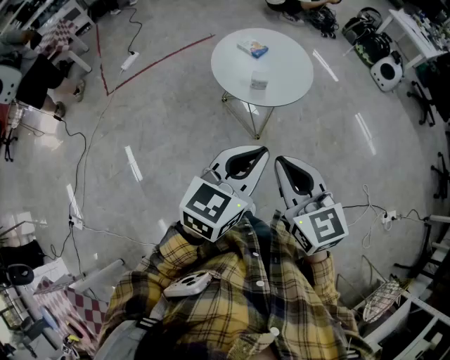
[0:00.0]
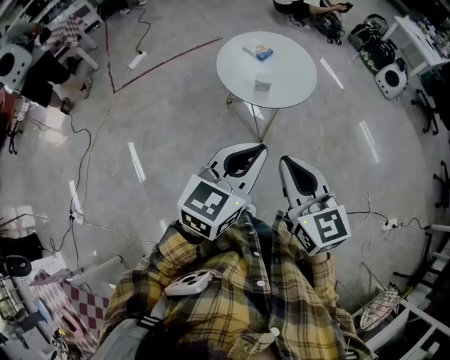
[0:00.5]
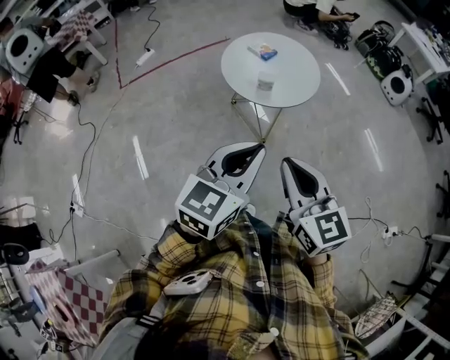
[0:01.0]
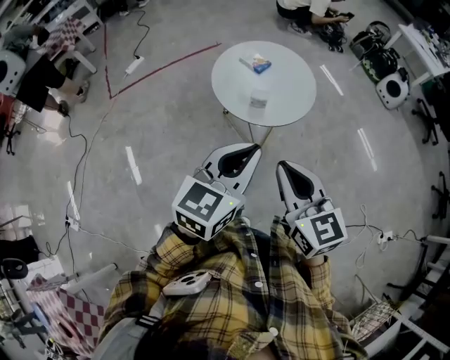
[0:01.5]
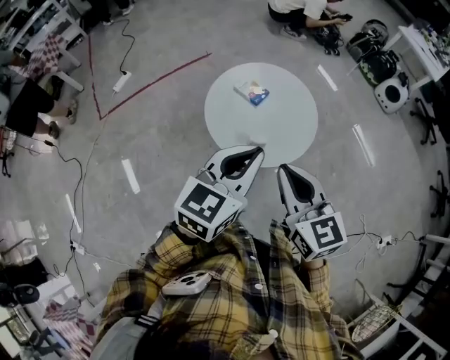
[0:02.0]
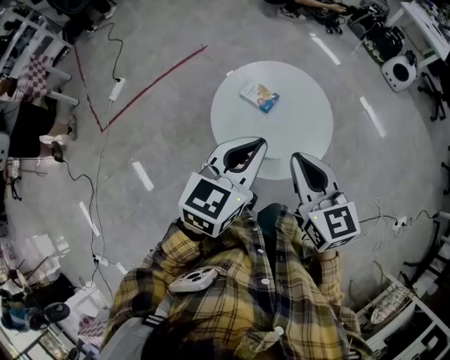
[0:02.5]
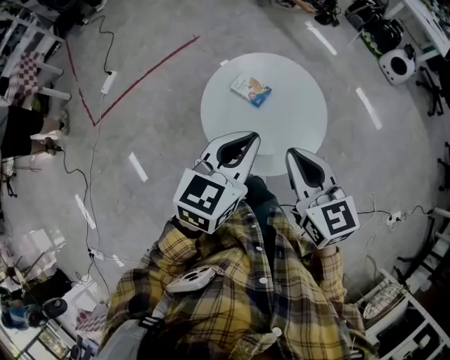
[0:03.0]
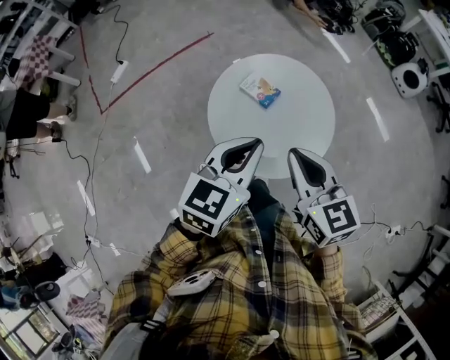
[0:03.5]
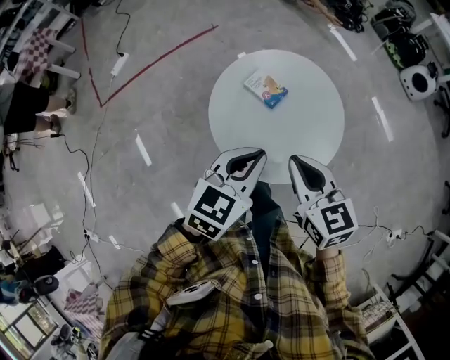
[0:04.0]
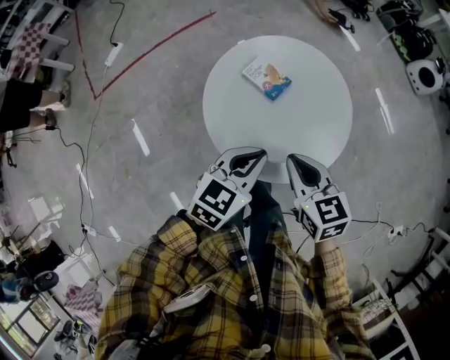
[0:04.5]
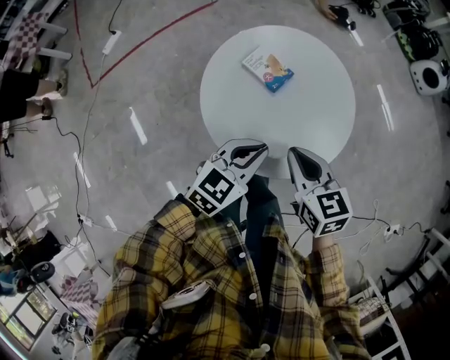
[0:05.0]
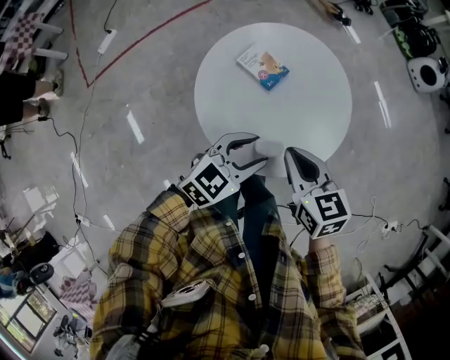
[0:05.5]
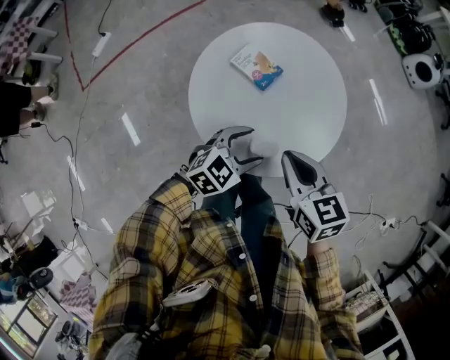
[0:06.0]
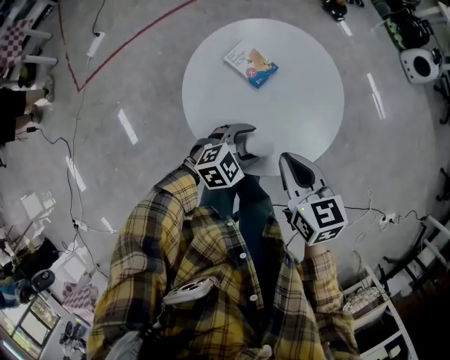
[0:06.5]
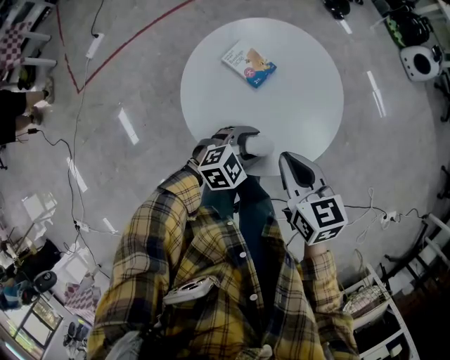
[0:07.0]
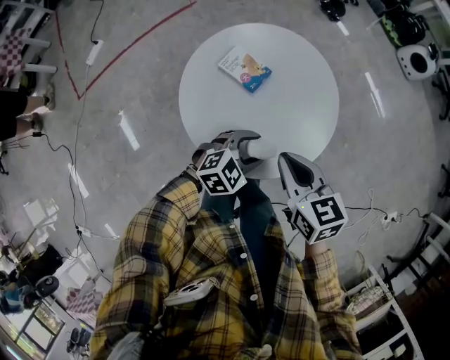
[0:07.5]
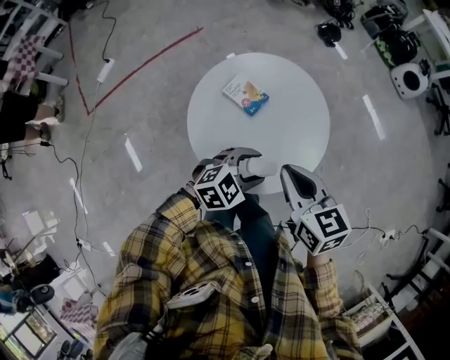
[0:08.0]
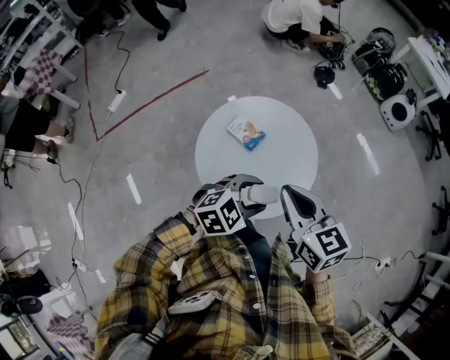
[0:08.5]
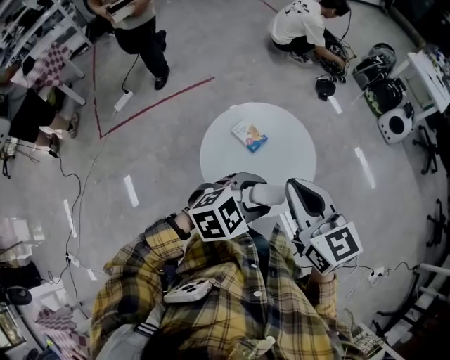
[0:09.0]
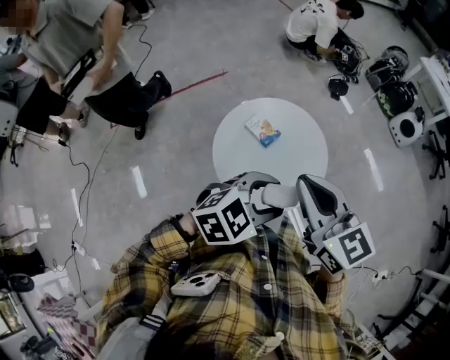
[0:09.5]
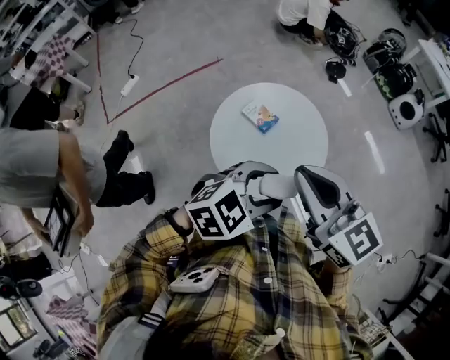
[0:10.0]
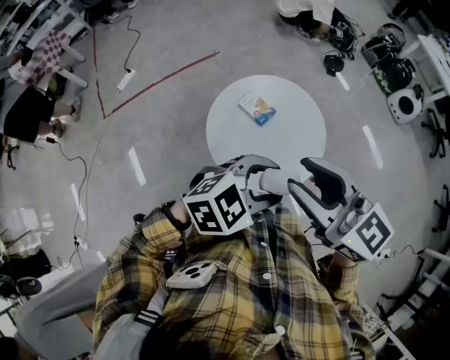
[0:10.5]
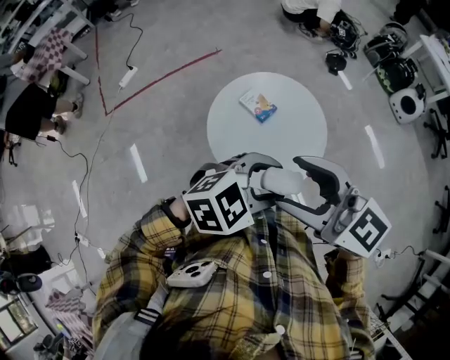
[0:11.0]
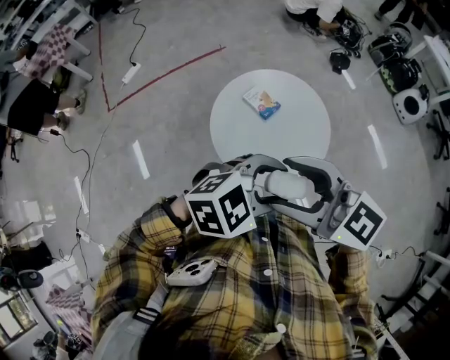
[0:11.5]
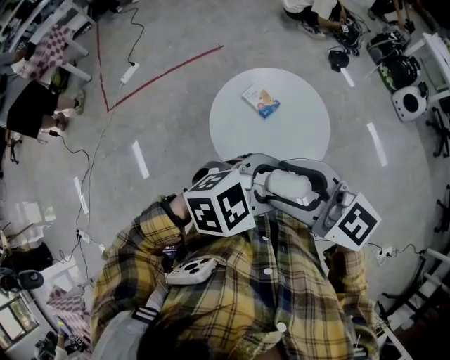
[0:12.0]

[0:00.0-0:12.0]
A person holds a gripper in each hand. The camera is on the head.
0:00.0 to 0:02.0: Both grippers move forward, about 25 cm.
0:02.0 to 0:04.0: The left gripper goes some 15 cm downward and forward, while the right gripper travels forward and downward by about 15 cm.
0:04.0 to 0:06.0: The left gripper goes about 20 cm downward, turns by roughly 30 degrees, and opens its fingers. The right gripper moves downward, some 10 cm.
0:06.0 to 0:08.0: The left gripper ends up about 5 cm from where it was. The right gripper heads upward, covering roughly 5 cm.
0:08.0 to 0:10.0: Both grippers move upward, about 20 cm. The right gripper swivels roughly 30 degrees.
0:10.0 to 0:12.0: The right gripper shifts by about 5 cm, turns by approximately 30 degrees, and opens.

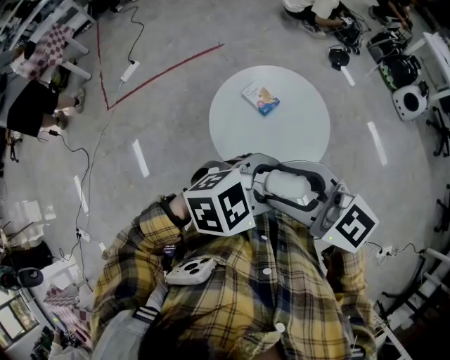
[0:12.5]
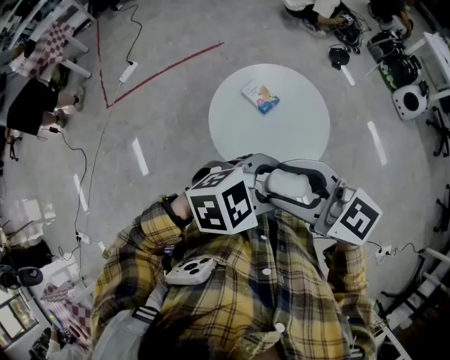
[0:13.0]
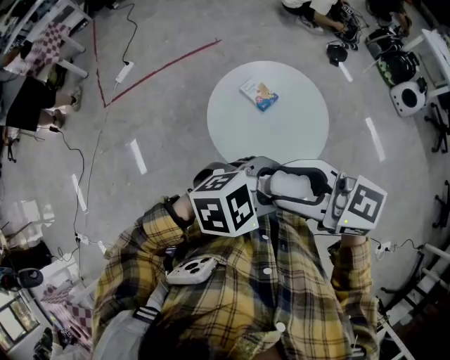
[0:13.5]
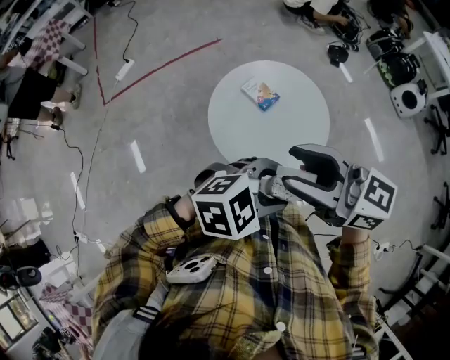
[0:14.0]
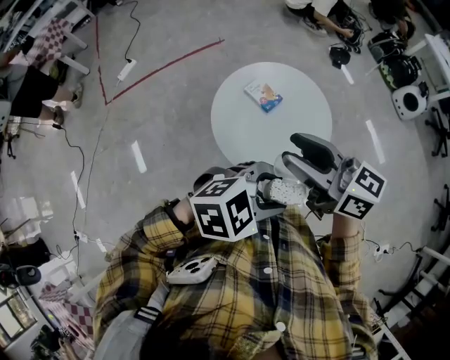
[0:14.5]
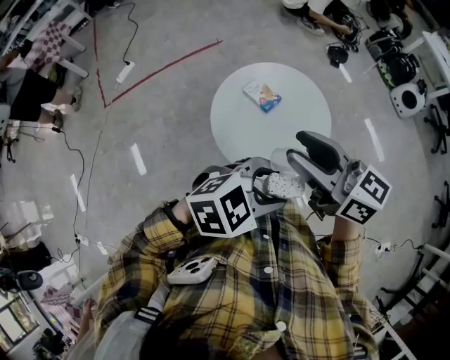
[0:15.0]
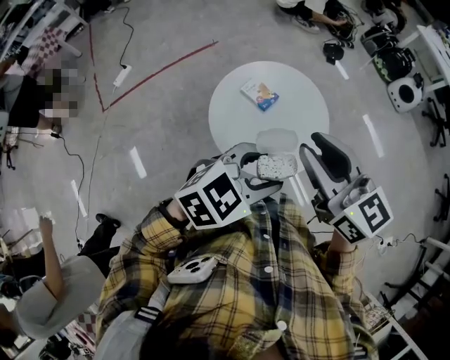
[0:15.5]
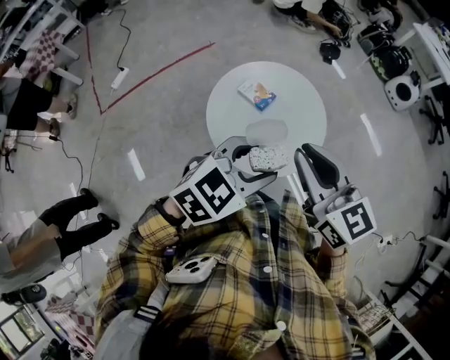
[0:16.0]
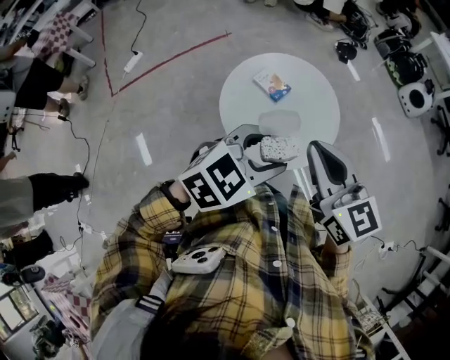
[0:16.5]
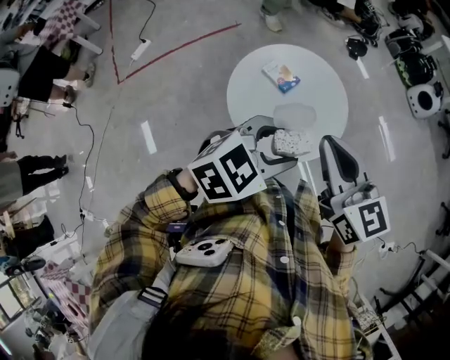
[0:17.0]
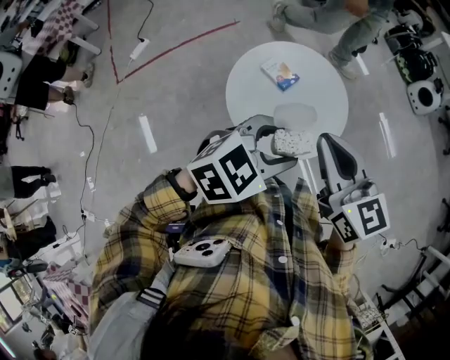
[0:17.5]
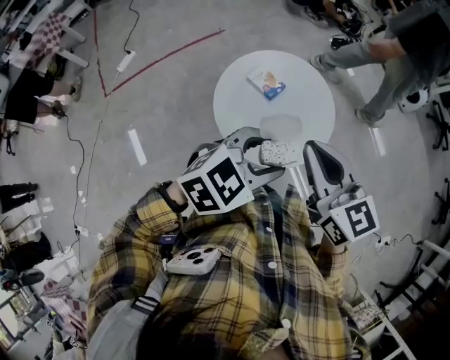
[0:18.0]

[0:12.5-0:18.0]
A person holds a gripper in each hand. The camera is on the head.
0:12.5 to 0:14.5: The right gripper changes place by some 5 cm, and rotates some 30 degrees.
0:14.5 to 0:16.0: The left gripper ends up approximately 10 cm from where it was, while the right gripper changes its angle by approximately 30 degrees, and closes.
0:16.0 to 0:18.0: The grippers move only a little.

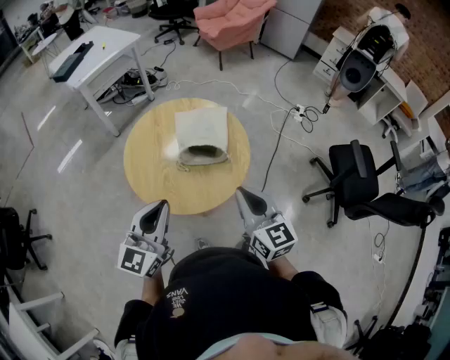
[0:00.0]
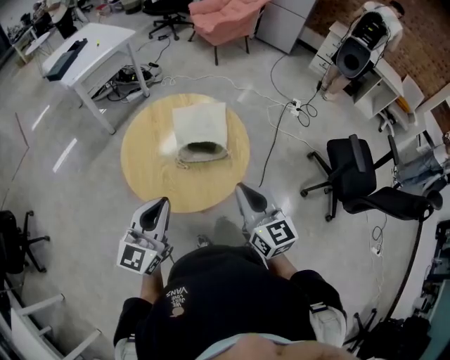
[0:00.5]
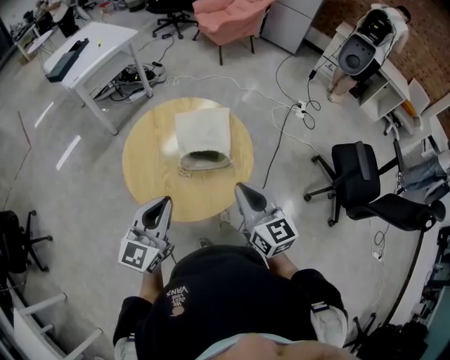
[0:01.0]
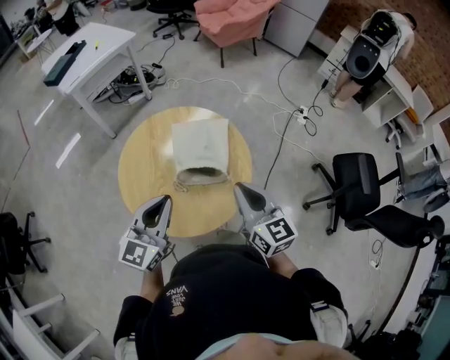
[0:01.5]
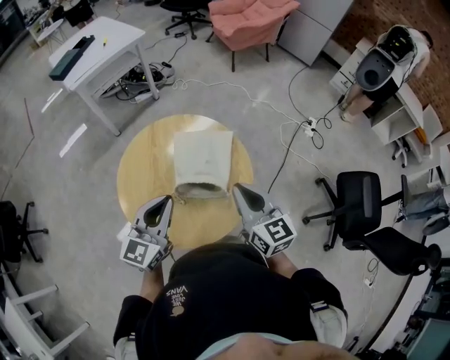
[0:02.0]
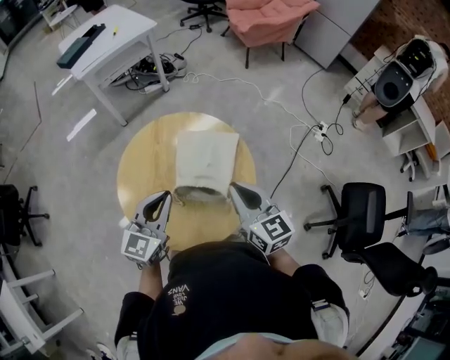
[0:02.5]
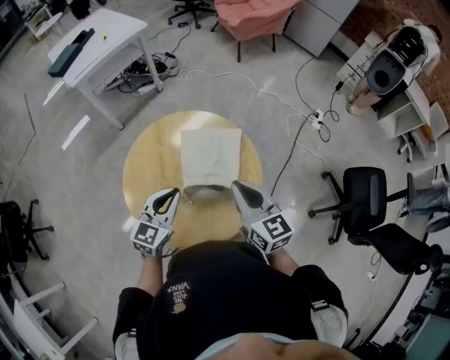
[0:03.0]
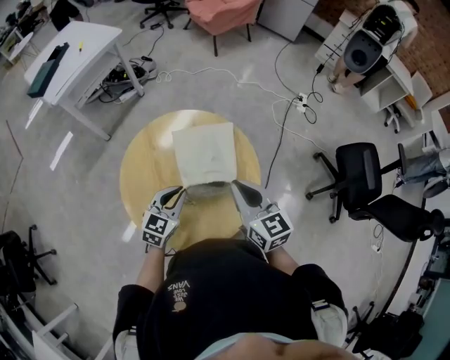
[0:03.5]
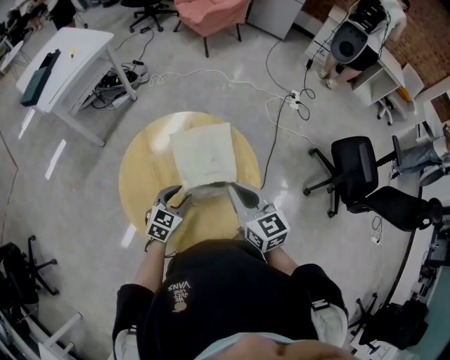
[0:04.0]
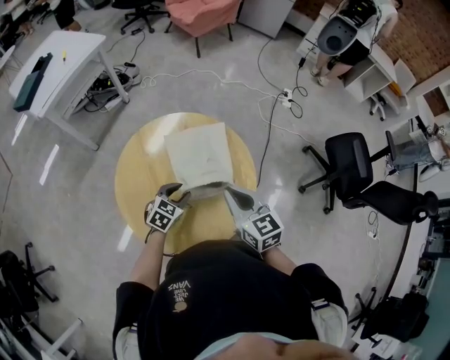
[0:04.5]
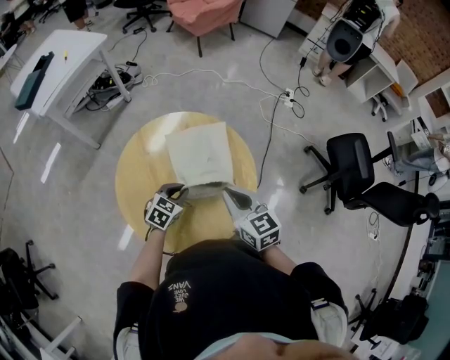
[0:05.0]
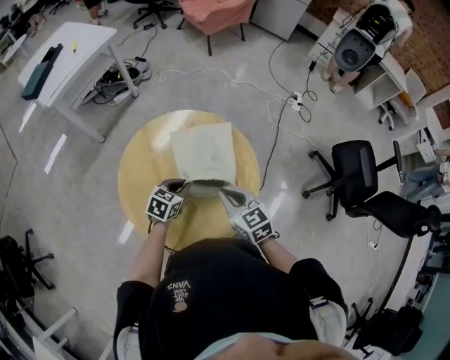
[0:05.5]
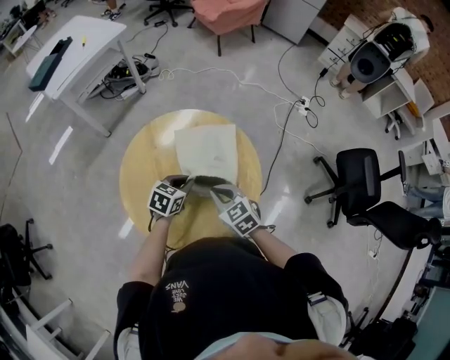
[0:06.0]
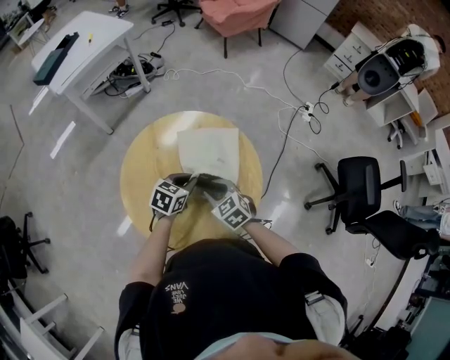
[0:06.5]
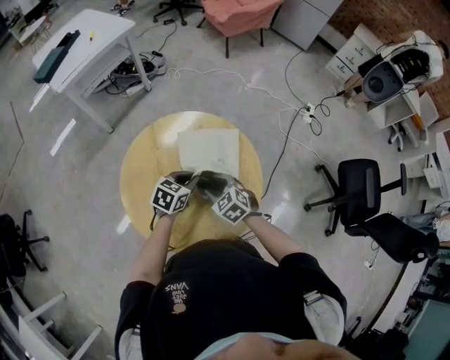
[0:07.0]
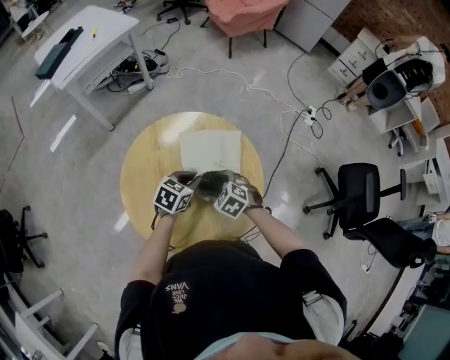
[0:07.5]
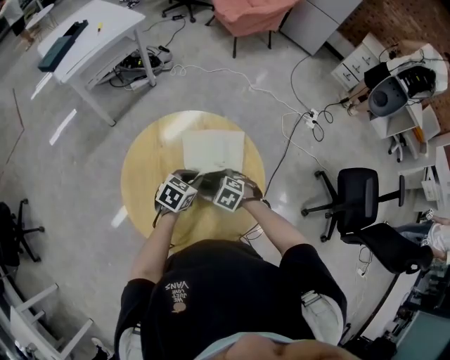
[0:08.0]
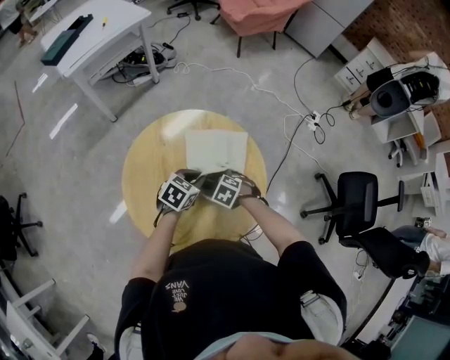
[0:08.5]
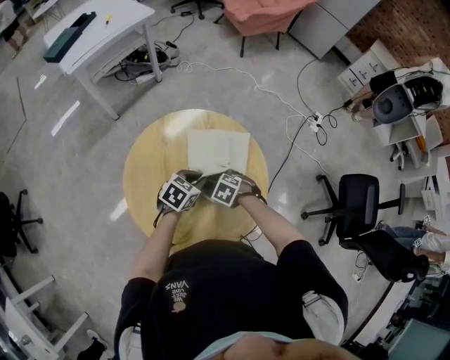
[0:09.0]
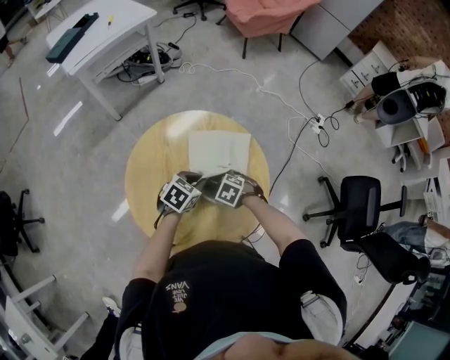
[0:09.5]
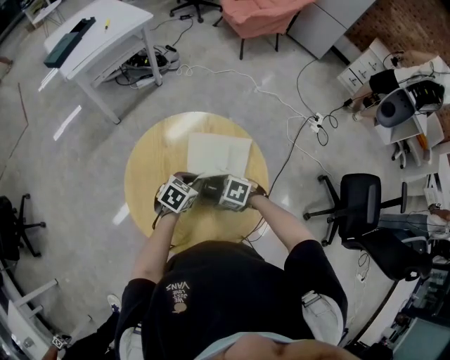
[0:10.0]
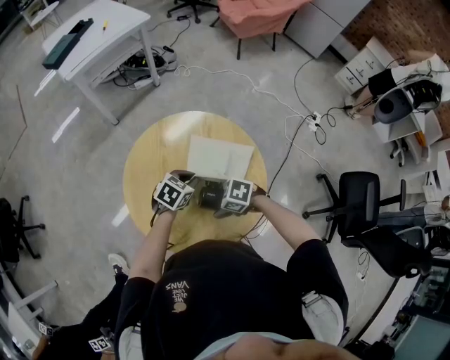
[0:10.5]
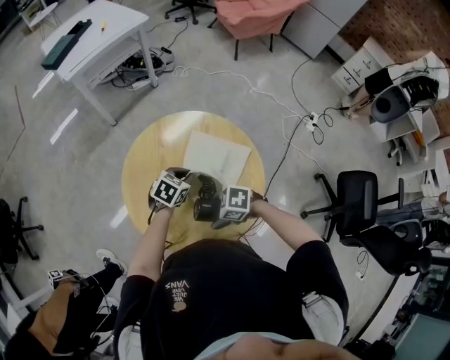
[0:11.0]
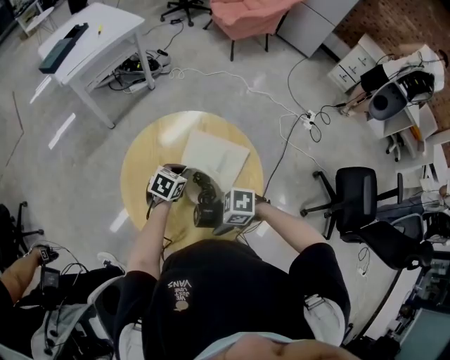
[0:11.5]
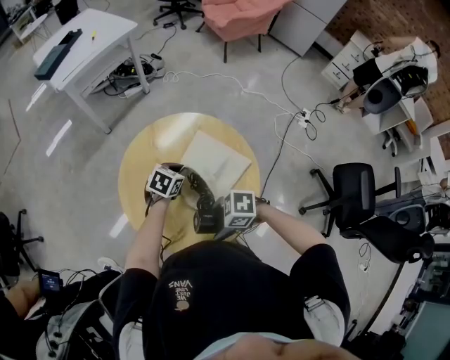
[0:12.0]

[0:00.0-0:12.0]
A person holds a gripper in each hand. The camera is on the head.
0:00.0 to 0:02.0: Both grippers move forward, approximately 20 cm.
0:02.0 to 0:04.0: The right gripper heads to the left, covering some 5 cm, while the left gripper shifts approximately 20 cm downward, turns by about 40 degrees, and opens.
0:04.0 to 0:06.0: The left gripper moves about 5 cm, and closes its fingers, while the right gripper travels downward by some 15 cm, and changes its angle by about 30 degrees.
0:06.0 to 0:08.0: The right gripper is displaced downward by approximately 10 cm, tips its fingers downward by approximately 30 degrees, and opens its fingers.
0:08.0 to 0:10.0: The right gripper rotates approximately 20 degrees.
0:10.0 to 0:12.0: The right gripper changes place by roughly 20 cm, and swivels approximately 20 degrees.
